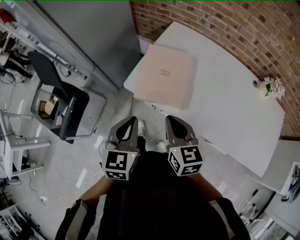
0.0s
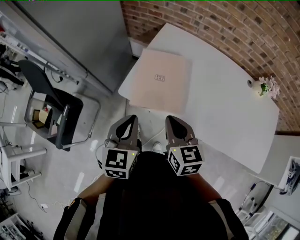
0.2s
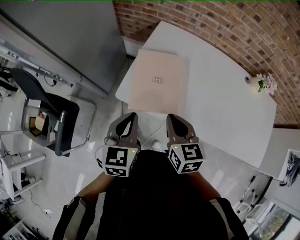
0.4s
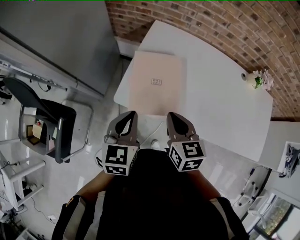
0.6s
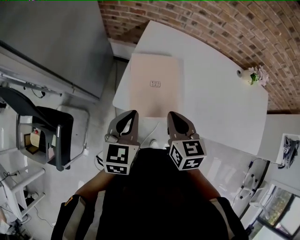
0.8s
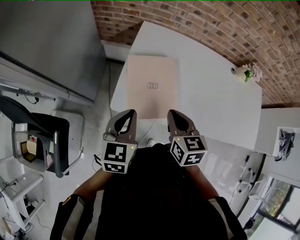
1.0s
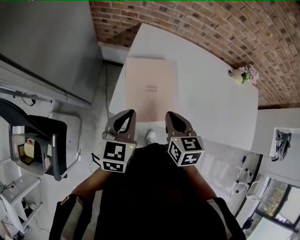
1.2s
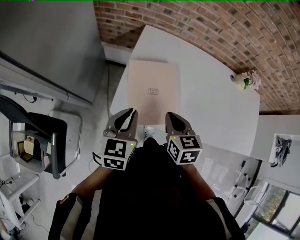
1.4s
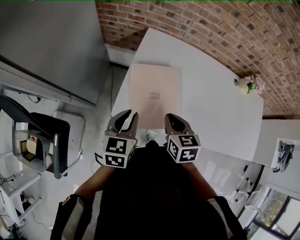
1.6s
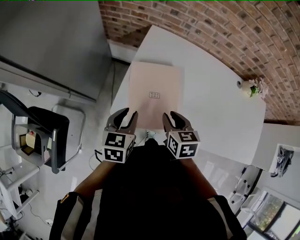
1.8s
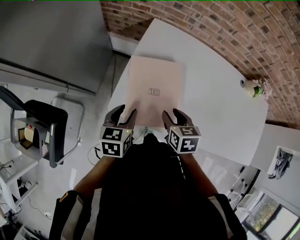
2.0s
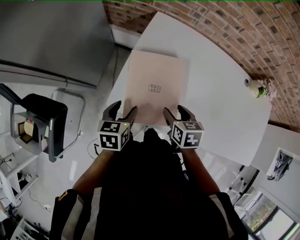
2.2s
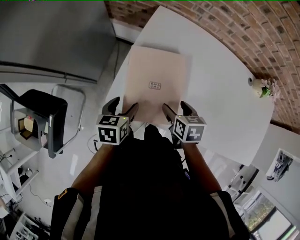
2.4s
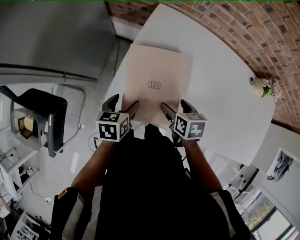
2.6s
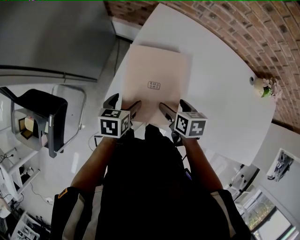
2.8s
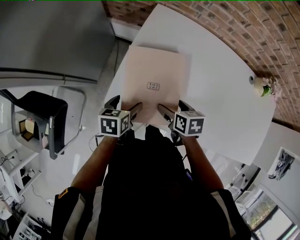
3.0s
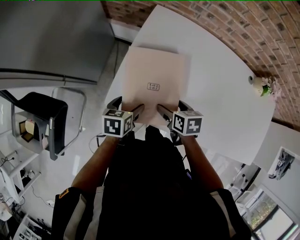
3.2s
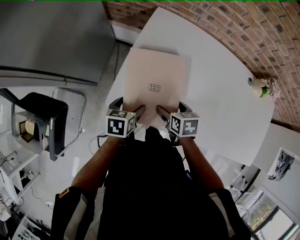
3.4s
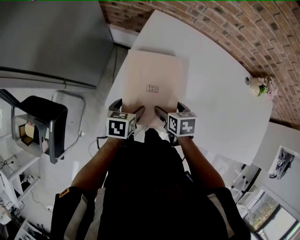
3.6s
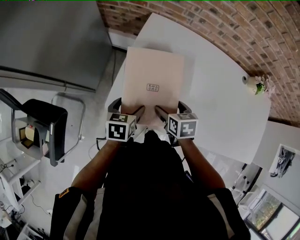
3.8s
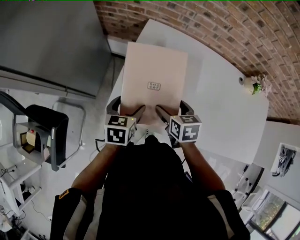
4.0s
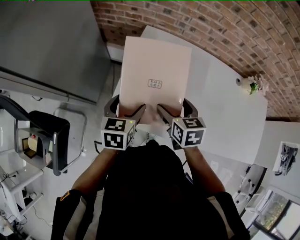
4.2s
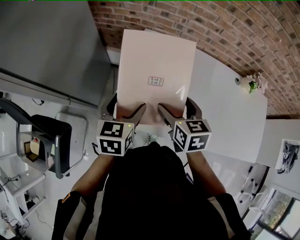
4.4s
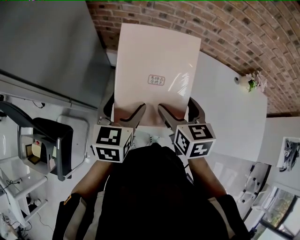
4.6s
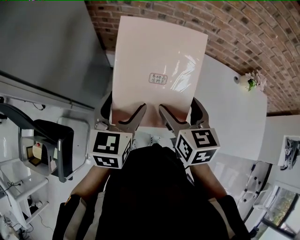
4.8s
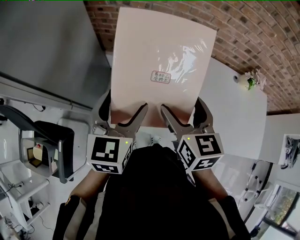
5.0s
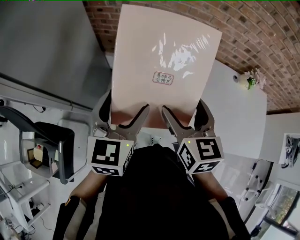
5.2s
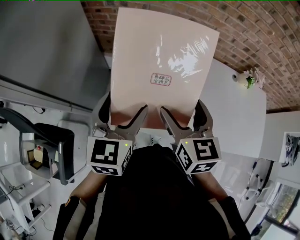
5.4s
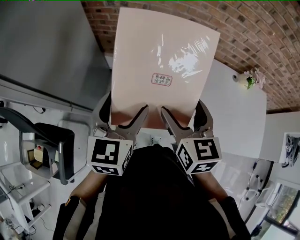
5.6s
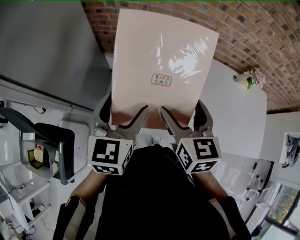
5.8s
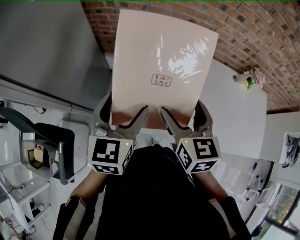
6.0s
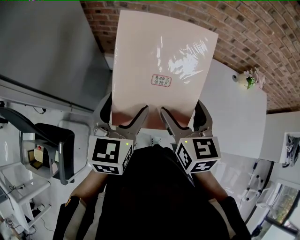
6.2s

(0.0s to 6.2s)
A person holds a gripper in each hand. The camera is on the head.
0.0s - 1.6s: The right gripper goes about 15 cm forward and downward, and changes its angle by some 20 degrees. The left gripper shifts some 15 cm forward, and rotates about 20 degrees.
1.6s - 3.2s: The grippers both shift downward by some 15 cm. The right gripper rotates approximately 20 degrees, and opens its fingers, while the left gripper swivels approximately 30 degrees, and opens up.
3.2s - 4.6s: The grippers both shift upward by some 20 cm. The right gripper rotates roughly 30 degrees, while the left gripper swivels some 30 degrees.
4.6s - 6.2s: The two grippers go approximately 5 cm upward.

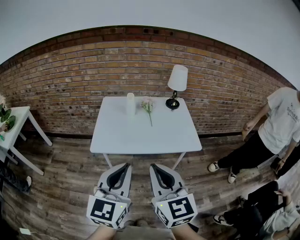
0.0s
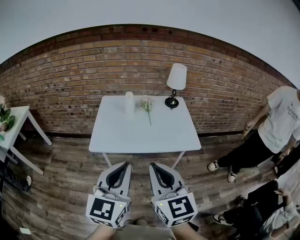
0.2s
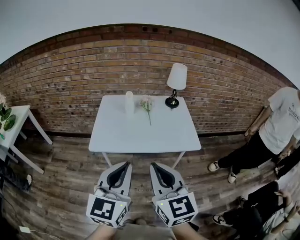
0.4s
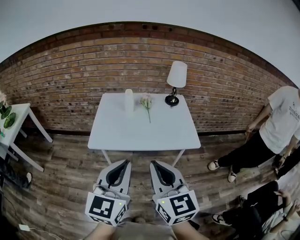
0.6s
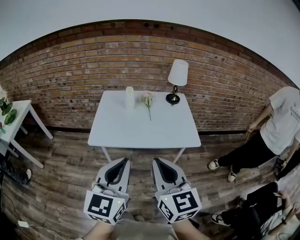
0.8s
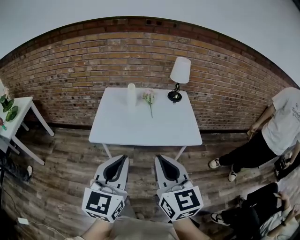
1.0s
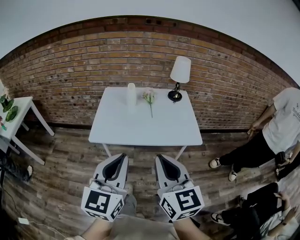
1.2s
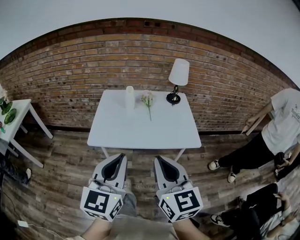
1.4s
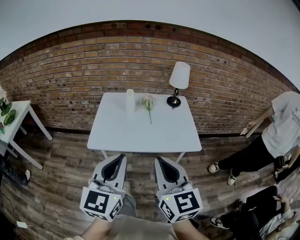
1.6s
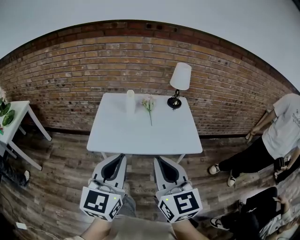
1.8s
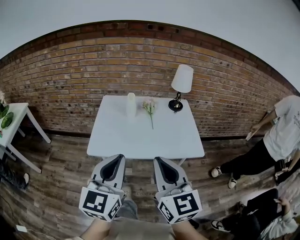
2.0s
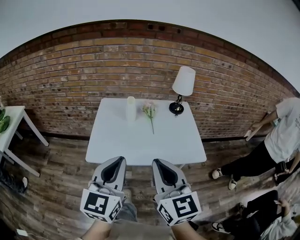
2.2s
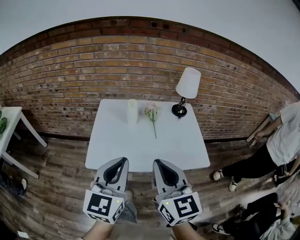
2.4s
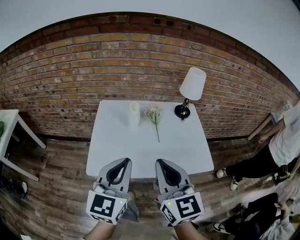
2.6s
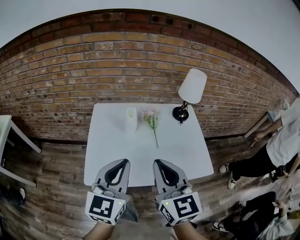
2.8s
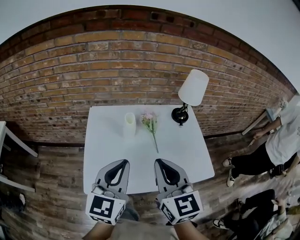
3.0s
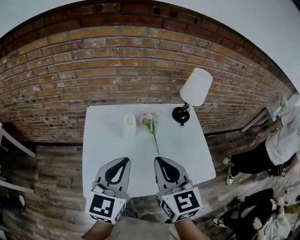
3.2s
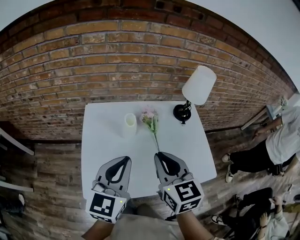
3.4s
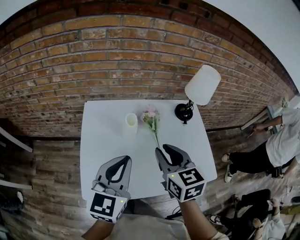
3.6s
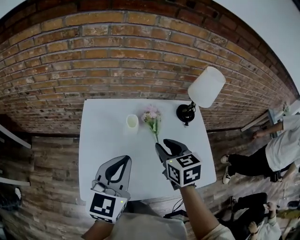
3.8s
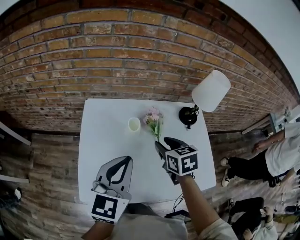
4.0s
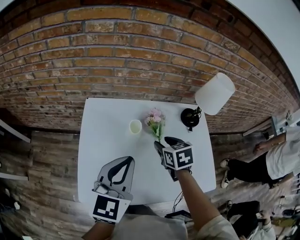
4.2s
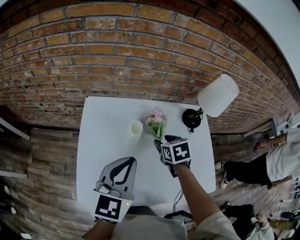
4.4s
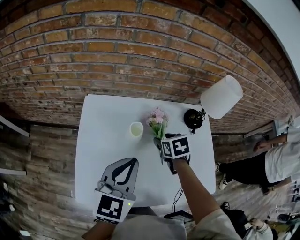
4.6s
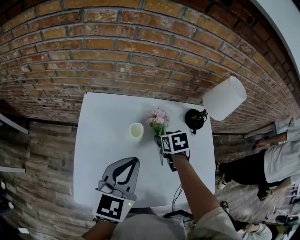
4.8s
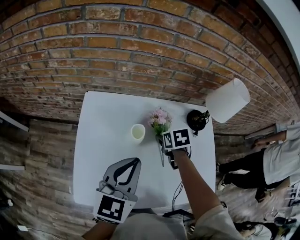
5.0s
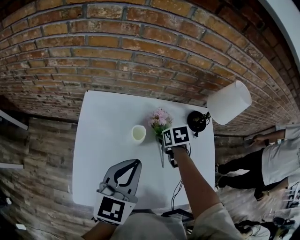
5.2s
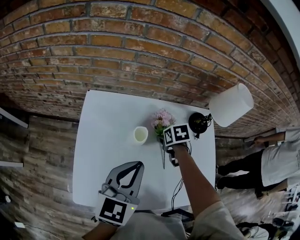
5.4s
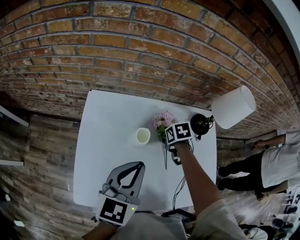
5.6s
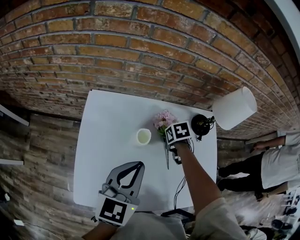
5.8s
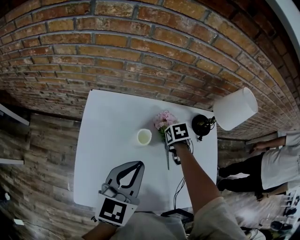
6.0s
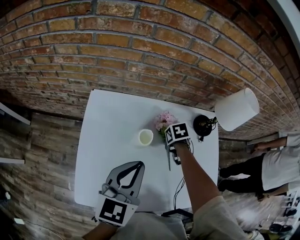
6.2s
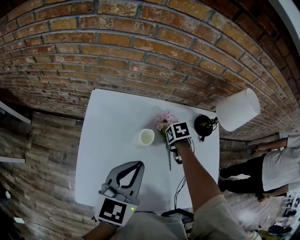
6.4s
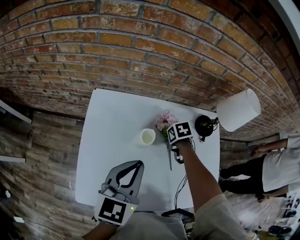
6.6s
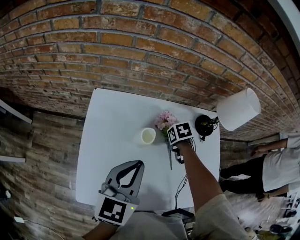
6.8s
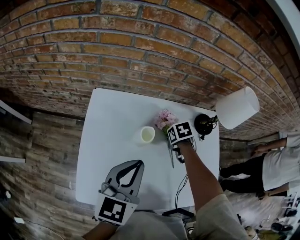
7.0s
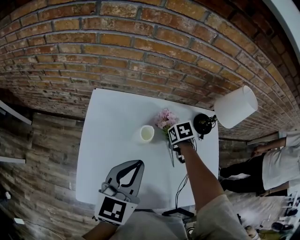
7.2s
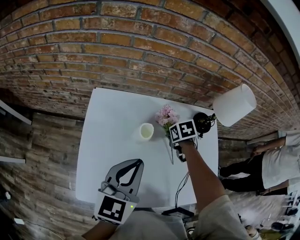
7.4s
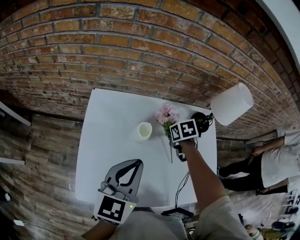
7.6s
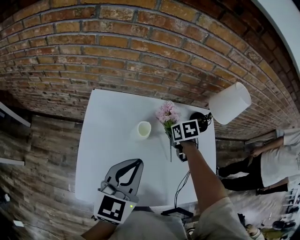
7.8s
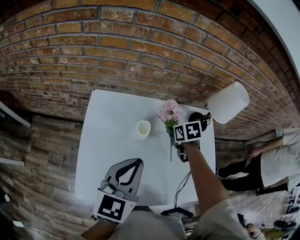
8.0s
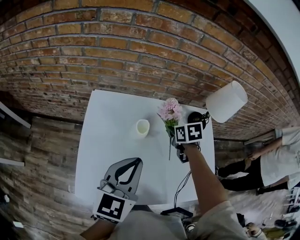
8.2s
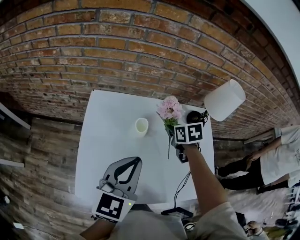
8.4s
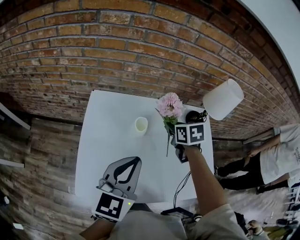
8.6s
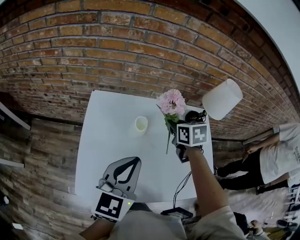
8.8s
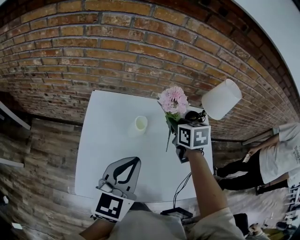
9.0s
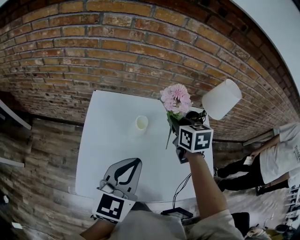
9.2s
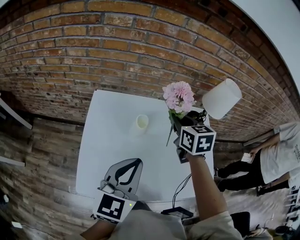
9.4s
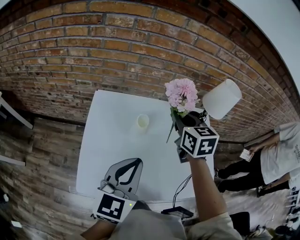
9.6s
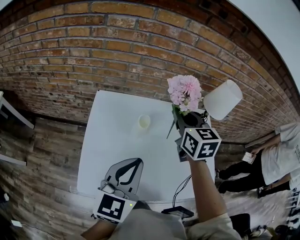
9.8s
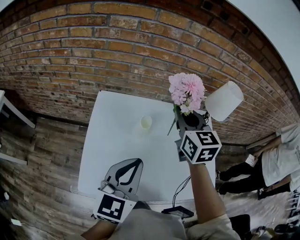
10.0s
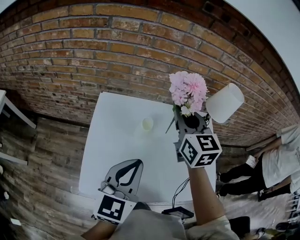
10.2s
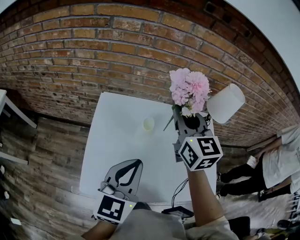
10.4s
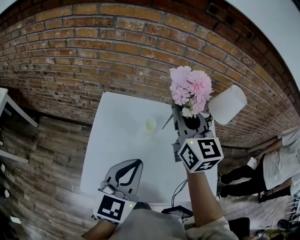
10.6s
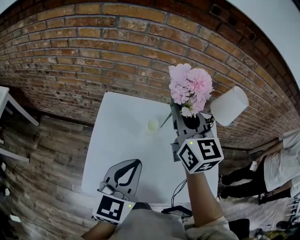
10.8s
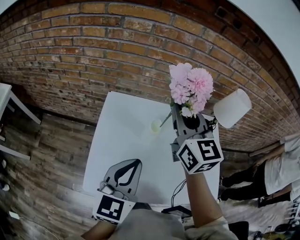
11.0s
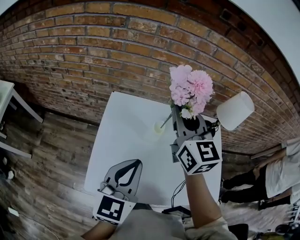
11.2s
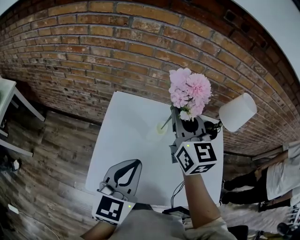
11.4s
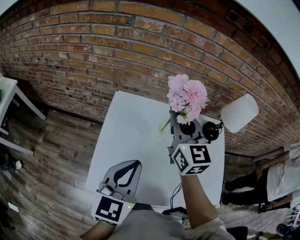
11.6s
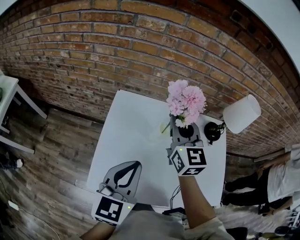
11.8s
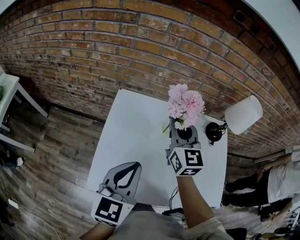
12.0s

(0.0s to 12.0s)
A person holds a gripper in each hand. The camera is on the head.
0.0s - 1.6s: The grippers stay close to where they were, moving slightly.
1.6s - 3.0s: Both grippers move forward, about 30 cm.
3.0s - 4.4s: The left gripper travels forward and downward by approximately 15 cm; the right gripper moves forward and downward, some 35 cm, angles its fingers downward, by some 50 degrees, and opens.
4.4s - 6.0s: The right gripper travels downward by about 10 cm, and changes its angle by about 20 degrees.
6.0s - 7.6s: The right gripper closes its fingers.
7.6s - 9.0s: The right gripper moves upward, roughly 15 cm, and turns by some 30 degrees.
9.0s - 10.4s: The right gripper goes roughly 15 cm upward, and tilts its fingers roughly 30 degrees upward.
10.4s - 12.0s: The left gripper heads to the left, covering about 5 cm. The right gripper heads downward and to the left, covering approximately 10 cm.

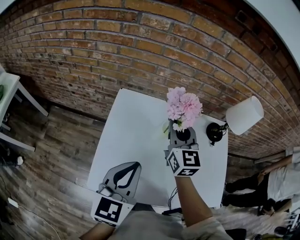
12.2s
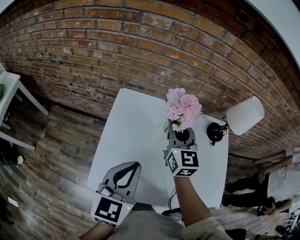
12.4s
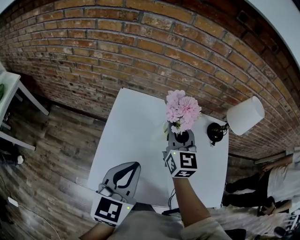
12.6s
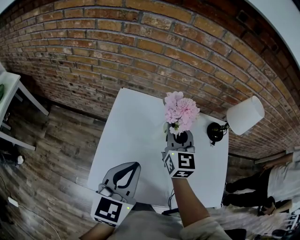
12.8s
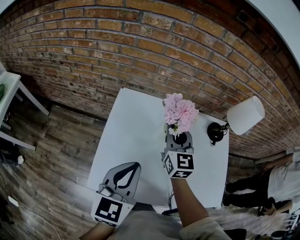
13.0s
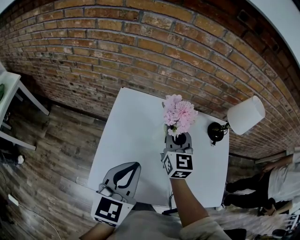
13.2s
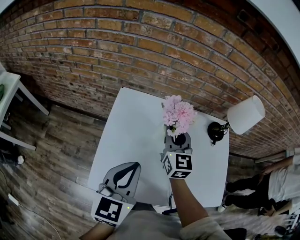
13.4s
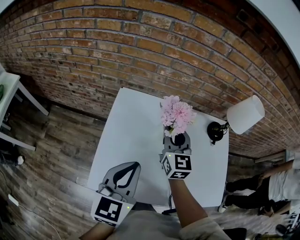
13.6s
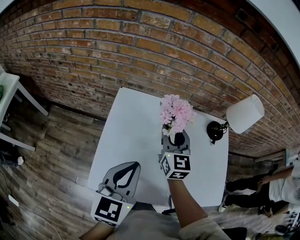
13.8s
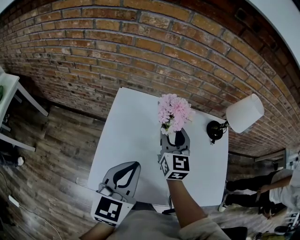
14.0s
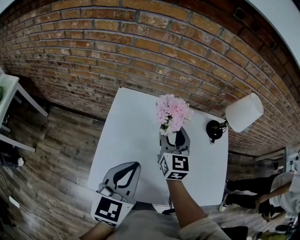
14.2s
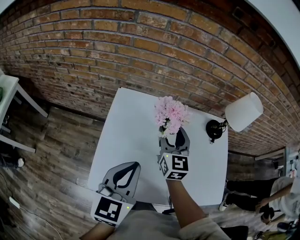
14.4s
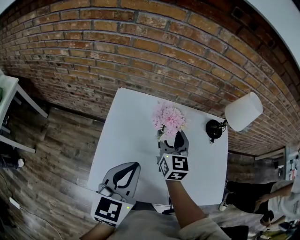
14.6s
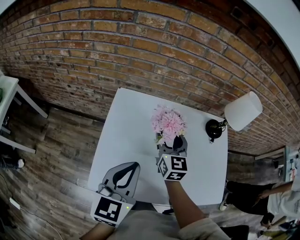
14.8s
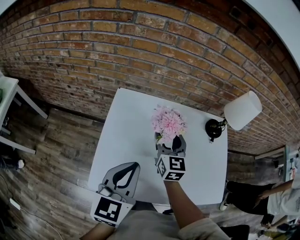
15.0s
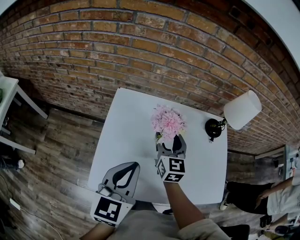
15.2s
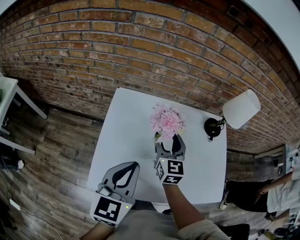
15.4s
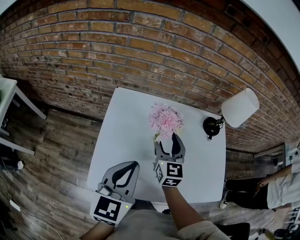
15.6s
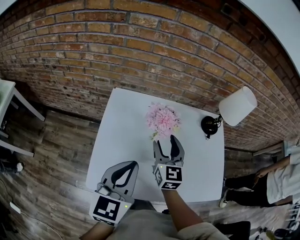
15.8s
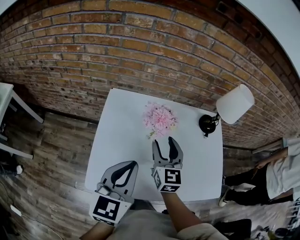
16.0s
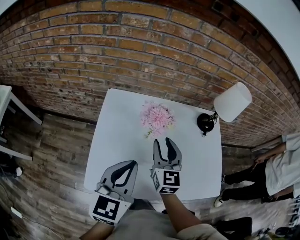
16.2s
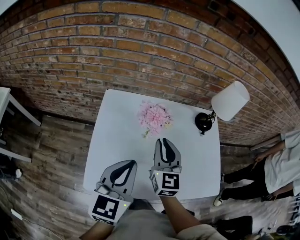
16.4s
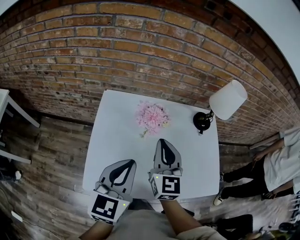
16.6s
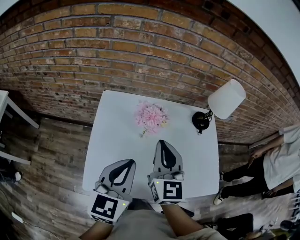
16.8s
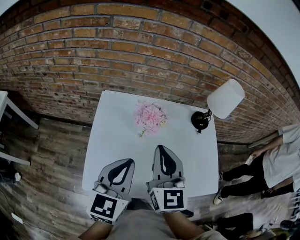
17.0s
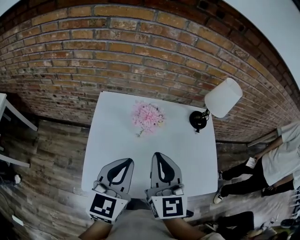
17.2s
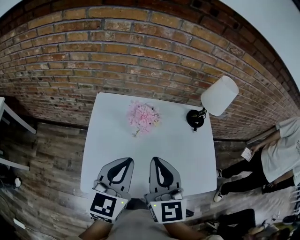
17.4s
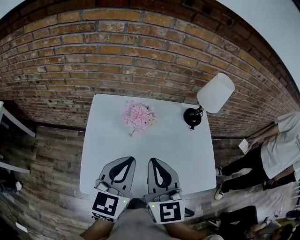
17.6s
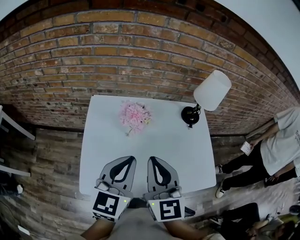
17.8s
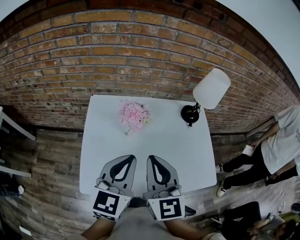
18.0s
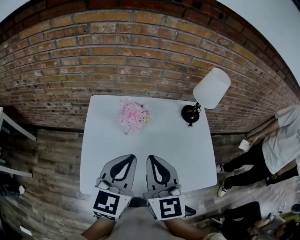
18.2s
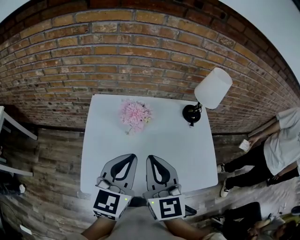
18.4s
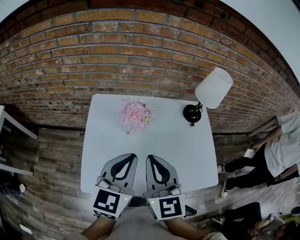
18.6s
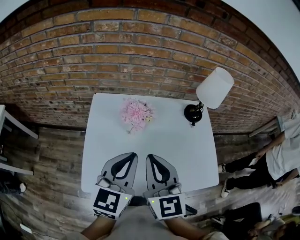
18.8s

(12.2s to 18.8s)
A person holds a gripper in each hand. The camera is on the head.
12.2s - 13.8s: The grippers move only a little.
13.8s - 15.4s: The right gripper opens up.
15.4s - 17.2s: The right gripper travels backward and upward by some 15 cm, and closes up.
17.2s - 18.8s: The grippers move only a little.
